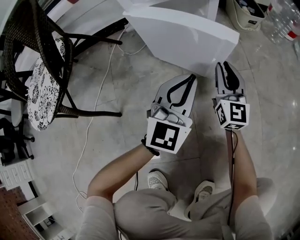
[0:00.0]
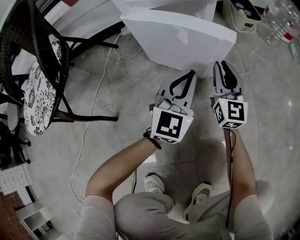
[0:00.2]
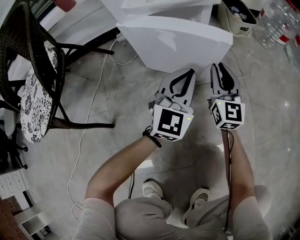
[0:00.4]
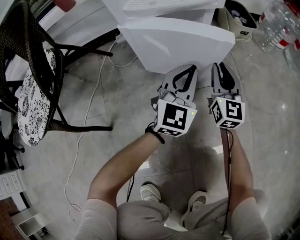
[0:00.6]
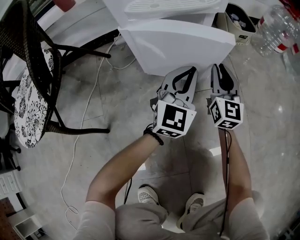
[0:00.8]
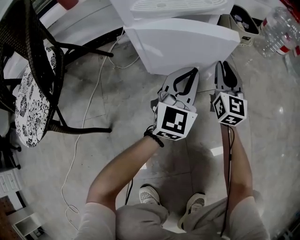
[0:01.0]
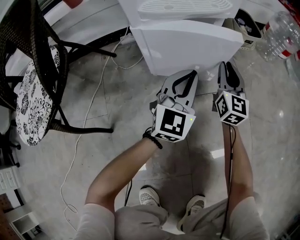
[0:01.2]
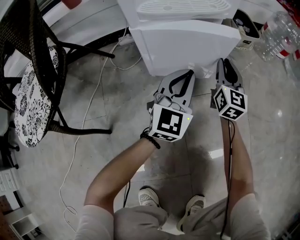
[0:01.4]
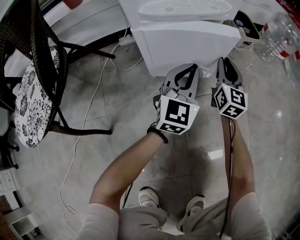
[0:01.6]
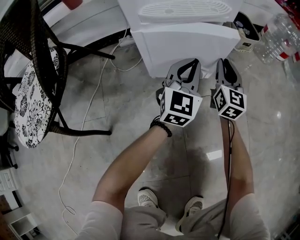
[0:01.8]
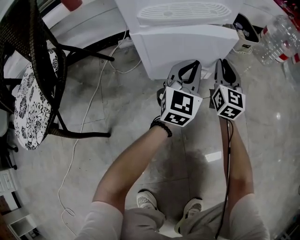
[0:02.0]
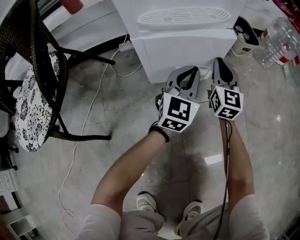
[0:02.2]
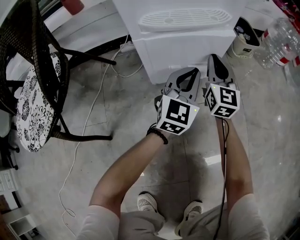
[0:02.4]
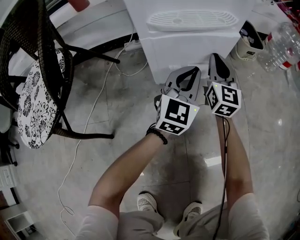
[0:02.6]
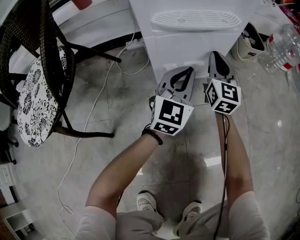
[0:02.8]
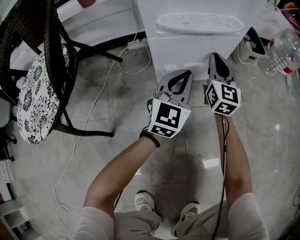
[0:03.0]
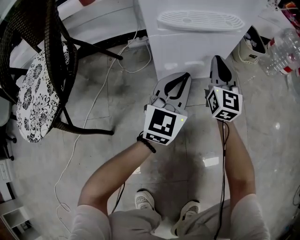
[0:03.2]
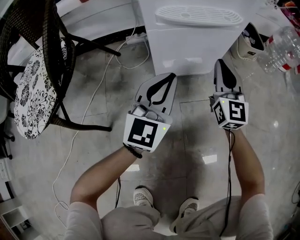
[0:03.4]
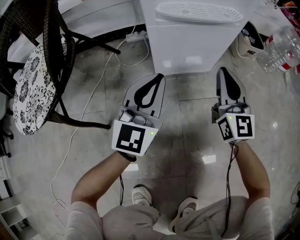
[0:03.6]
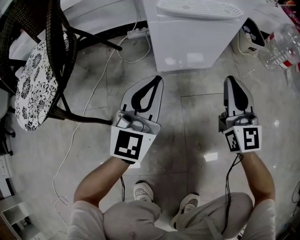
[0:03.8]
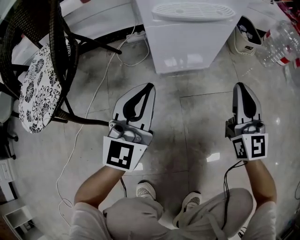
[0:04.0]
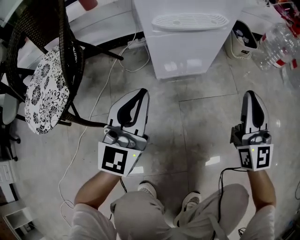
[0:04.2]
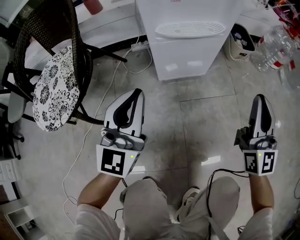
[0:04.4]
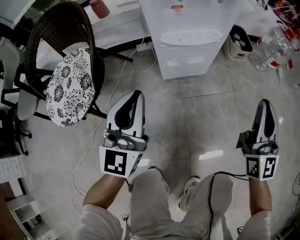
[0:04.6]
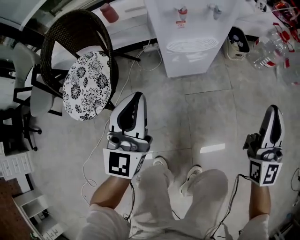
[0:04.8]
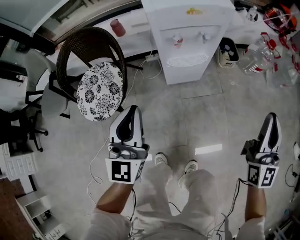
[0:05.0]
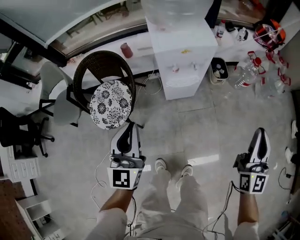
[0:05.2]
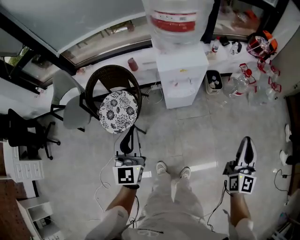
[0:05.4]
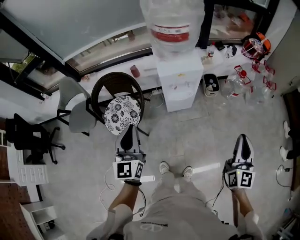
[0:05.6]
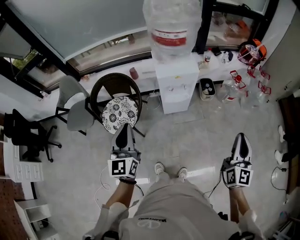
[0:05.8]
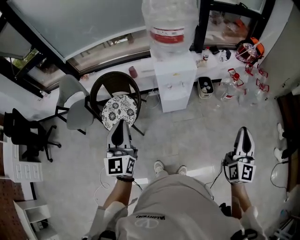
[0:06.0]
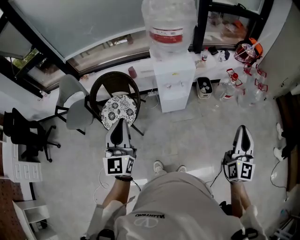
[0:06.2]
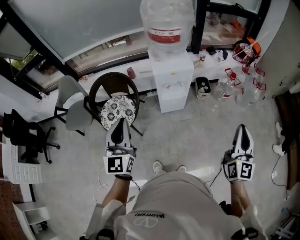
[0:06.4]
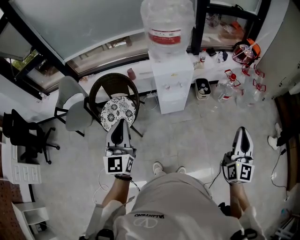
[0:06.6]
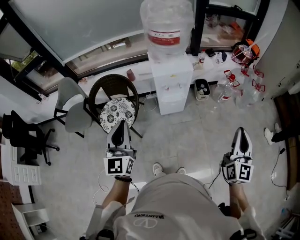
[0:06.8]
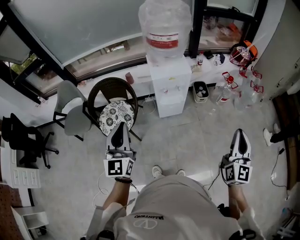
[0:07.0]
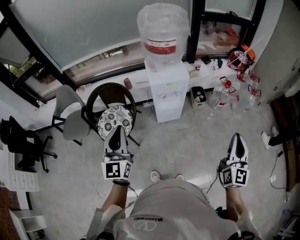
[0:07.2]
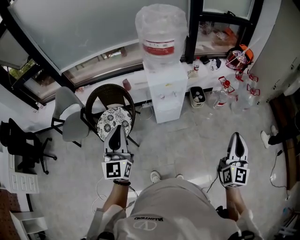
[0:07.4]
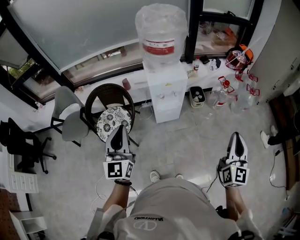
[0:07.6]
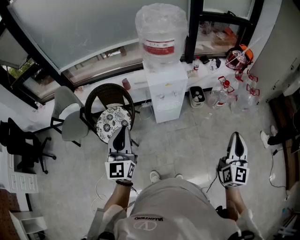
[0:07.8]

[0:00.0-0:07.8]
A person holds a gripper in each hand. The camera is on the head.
0:00.0 to 0:01.6: Both grippers move forward, roughly 10 cm.
0:01.6 to 0:03.2: The two grippers go roughly 5 cm to the left.
0:03.2 to 0:04.6: The right gripper moves upward, backward and to the right, approximately 35 cm. Meanwhile the left gripper goes about 30 cm upward, backward and to the left.
0:04.6 to 0:06.2: Both grippers move upward, some 60 cm.
0:06.2 to 0:07.8: The grippers stay close to where they were, moving slightly.

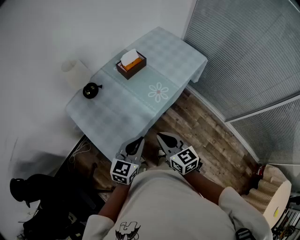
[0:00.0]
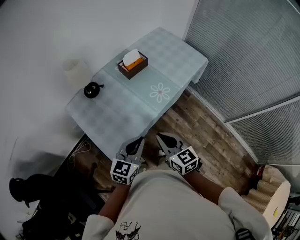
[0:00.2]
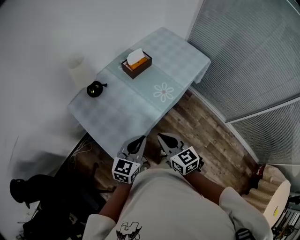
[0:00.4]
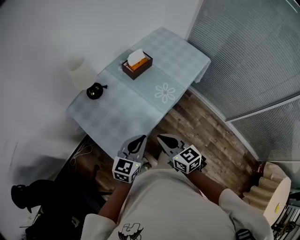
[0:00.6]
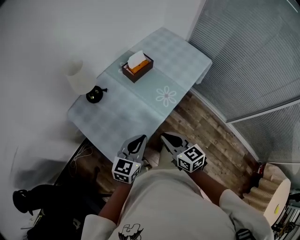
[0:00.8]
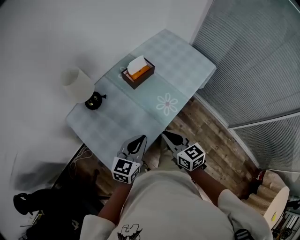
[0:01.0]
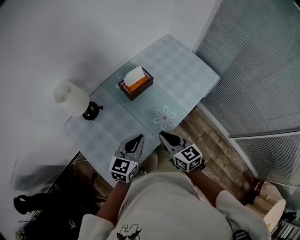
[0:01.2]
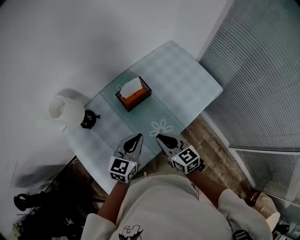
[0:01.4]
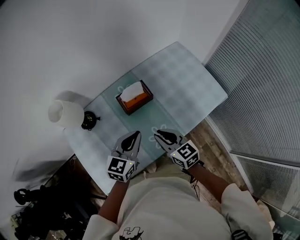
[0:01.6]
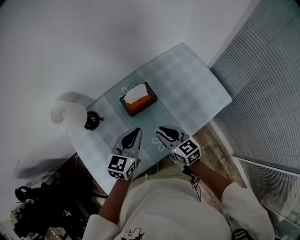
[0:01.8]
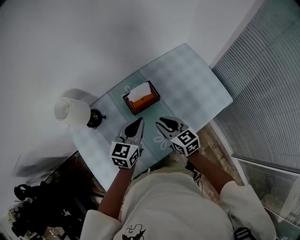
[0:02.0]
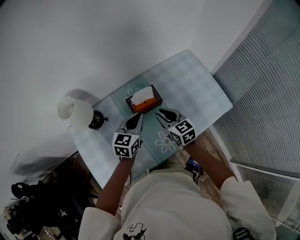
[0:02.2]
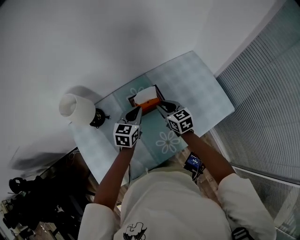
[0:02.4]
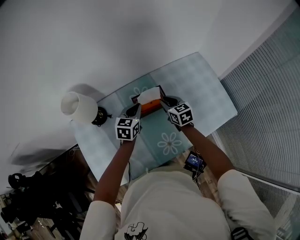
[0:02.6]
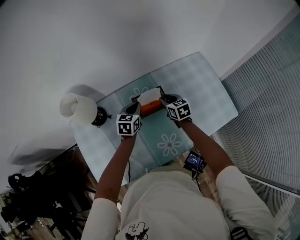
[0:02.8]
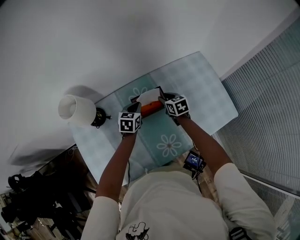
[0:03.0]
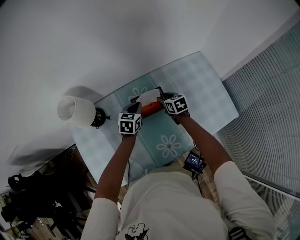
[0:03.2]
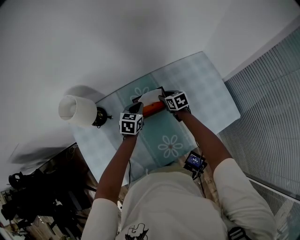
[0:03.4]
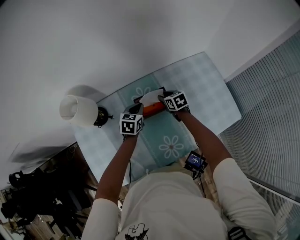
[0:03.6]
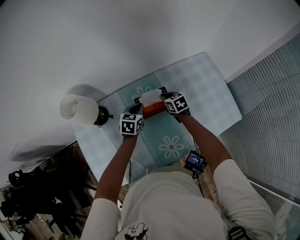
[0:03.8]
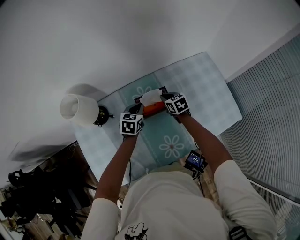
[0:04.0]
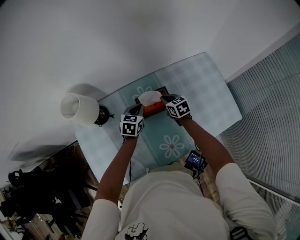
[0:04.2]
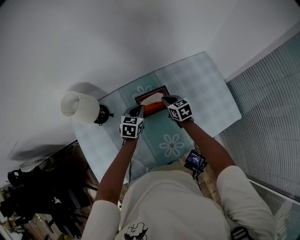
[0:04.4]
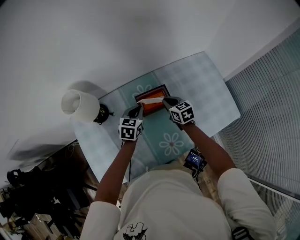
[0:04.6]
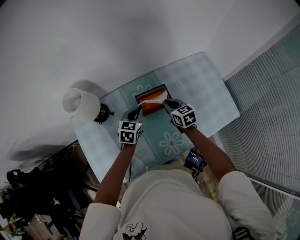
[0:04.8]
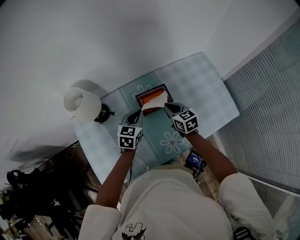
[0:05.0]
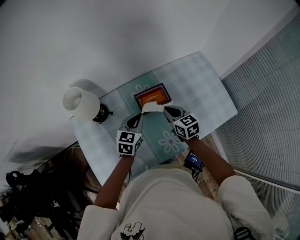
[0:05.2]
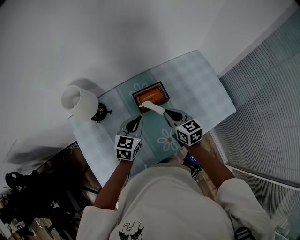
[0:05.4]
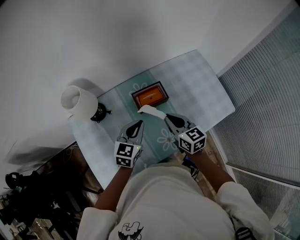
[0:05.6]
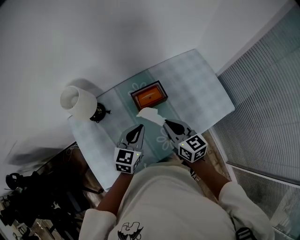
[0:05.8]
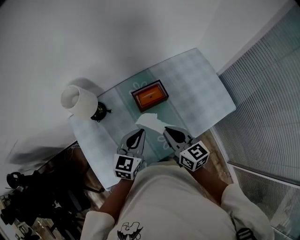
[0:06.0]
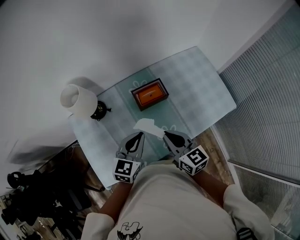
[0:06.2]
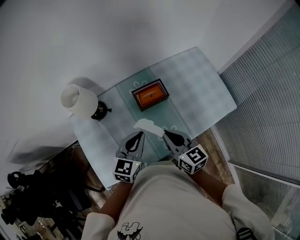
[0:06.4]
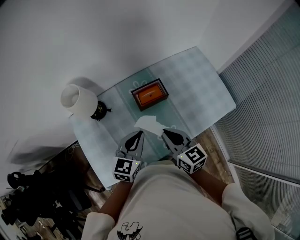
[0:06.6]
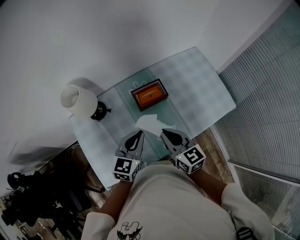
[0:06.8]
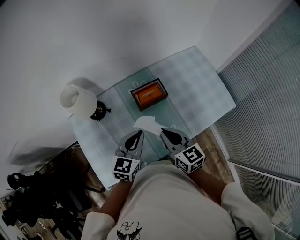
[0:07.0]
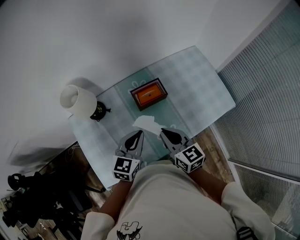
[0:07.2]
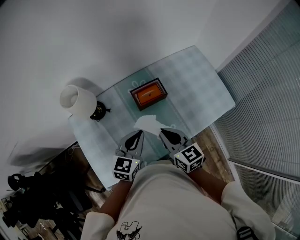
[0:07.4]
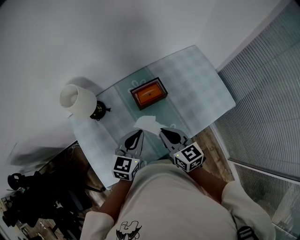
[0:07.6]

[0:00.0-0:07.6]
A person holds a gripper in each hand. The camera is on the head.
0:00.0 to 0:01.6: Both grippers move forward, approximately 35 cm. The right gripper changes its angle by roughly 20 degrees.
0:01.6 to 0:03.0: The grippers both shift forward and downward by approximately 25 cm. The left gripper rotates roughly 20 degrees.
0:03.0 to 0:04.6: The right gripper closes its fingers.
0:04.6 to 0:06.0: The two grippers go about 25 cm backward and upward. The right gripper turns by approximately 20 degrees.
0:06.0 to 0:07.6: There are only small adjustments of the grippers.

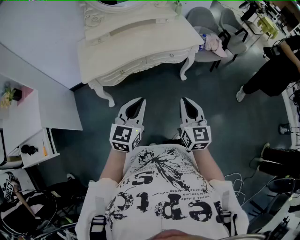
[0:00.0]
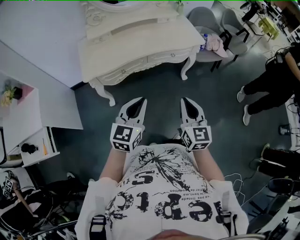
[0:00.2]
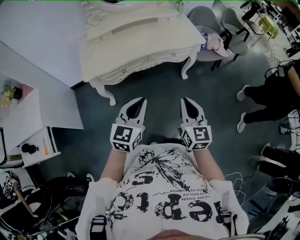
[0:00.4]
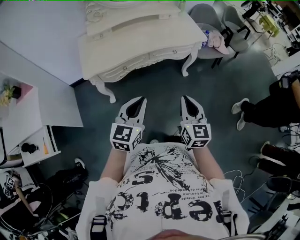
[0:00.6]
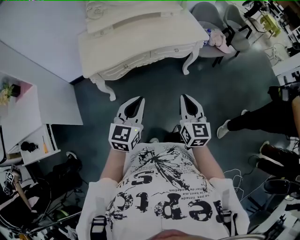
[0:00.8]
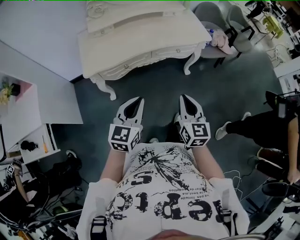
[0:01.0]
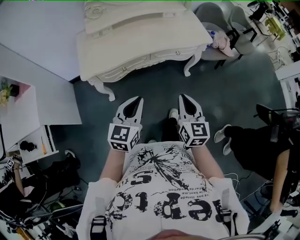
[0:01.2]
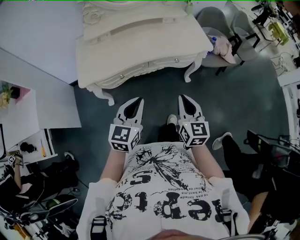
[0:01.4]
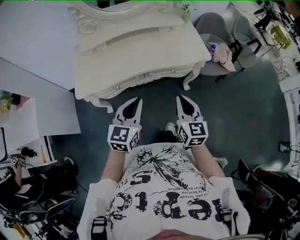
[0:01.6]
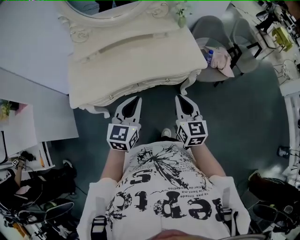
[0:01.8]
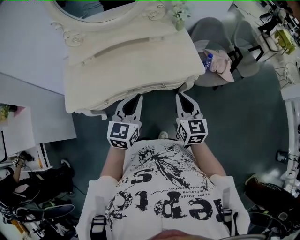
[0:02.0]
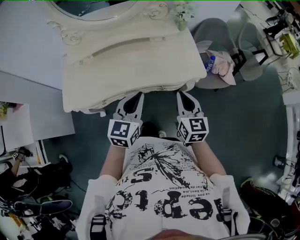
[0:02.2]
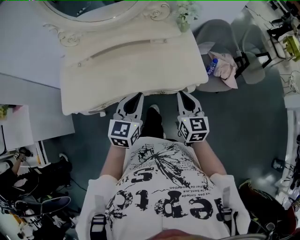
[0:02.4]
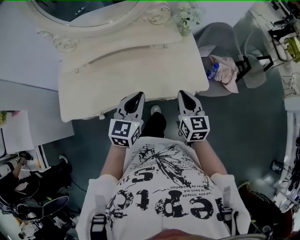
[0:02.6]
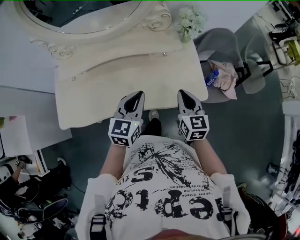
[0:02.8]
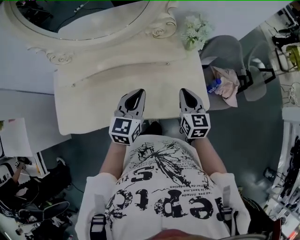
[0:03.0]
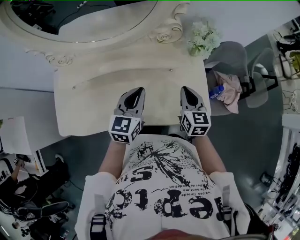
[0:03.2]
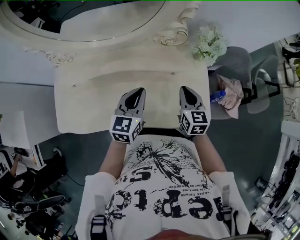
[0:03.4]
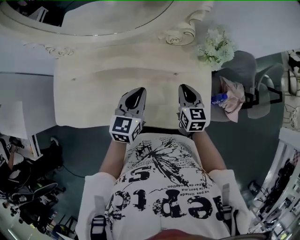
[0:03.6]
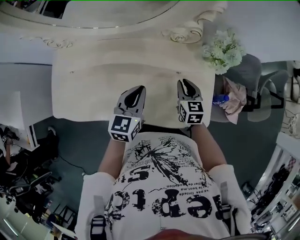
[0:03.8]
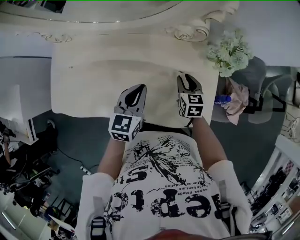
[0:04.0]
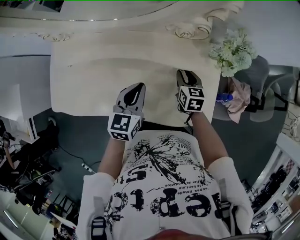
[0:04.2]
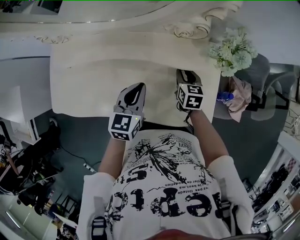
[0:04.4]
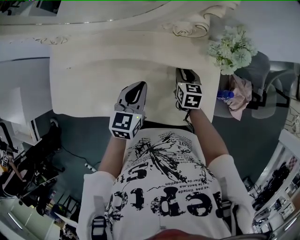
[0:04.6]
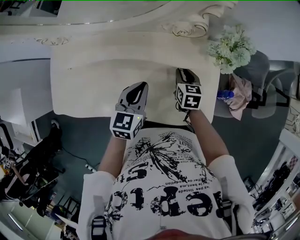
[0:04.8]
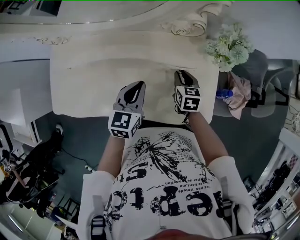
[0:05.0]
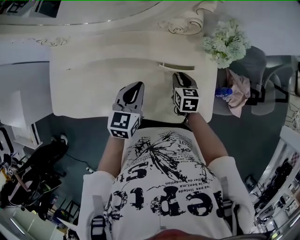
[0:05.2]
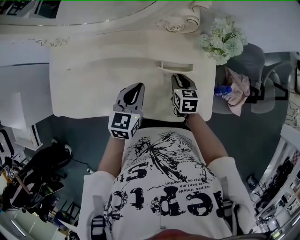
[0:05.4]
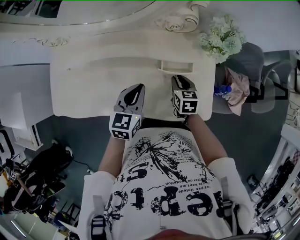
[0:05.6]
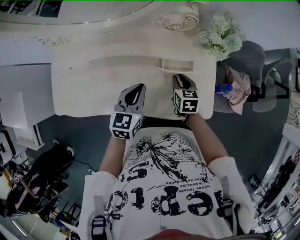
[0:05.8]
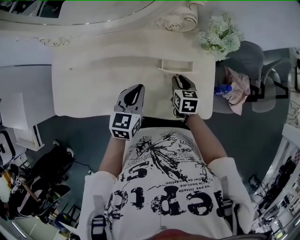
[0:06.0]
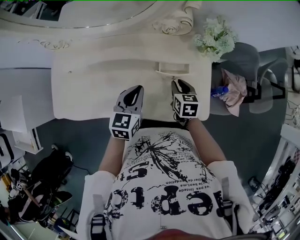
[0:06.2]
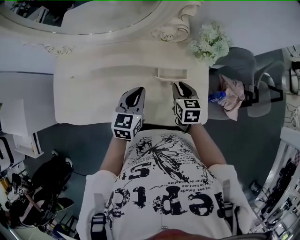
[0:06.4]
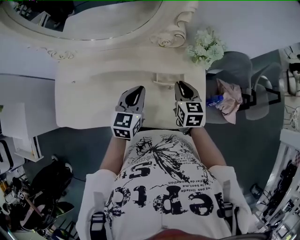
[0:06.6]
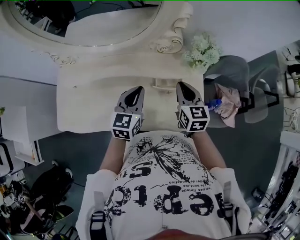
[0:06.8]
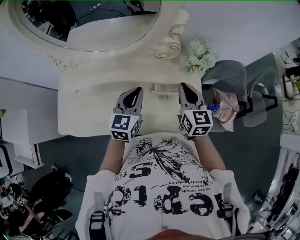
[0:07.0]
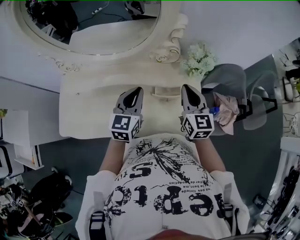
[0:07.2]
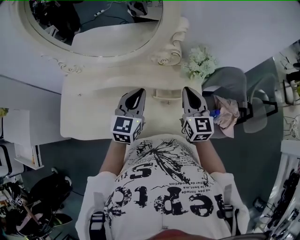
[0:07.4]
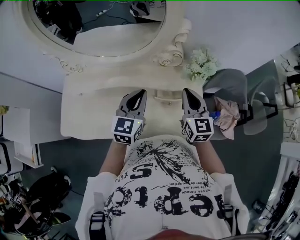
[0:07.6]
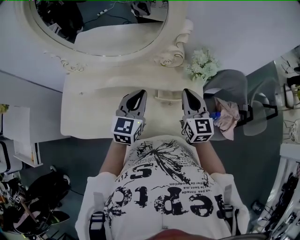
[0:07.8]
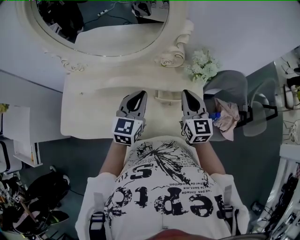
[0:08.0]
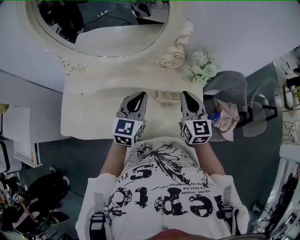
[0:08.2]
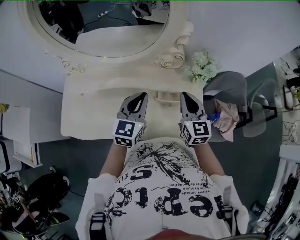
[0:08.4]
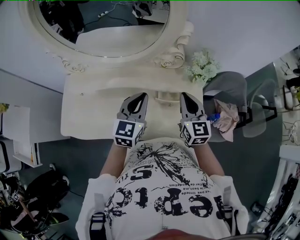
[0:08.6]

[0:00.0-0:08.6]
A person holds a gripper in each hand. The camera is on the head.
0:00.0 to 0:01.4: The two grippers go approximately 10 cm forward.
0:01.4 to 0:02.8: The two grippers travel together, forward, roughly 40 cm.
0:02.8 to 0:04.4: The right gripper travels forward and downward by approximately 30 cm, rotates roughly 20 degrees, and opens. The left gripper goes about 15 cm forward and downward.
0:04.4 to 0:05.8: The right gripper is displaced backward by approximately 5 cm.
0:05.8 to 0:07.2: The left gripper heads upward and forward, covering roughly 10 cm, while the right gripper is displaced upward by roughly 25 cm, tilts its fingers approximately 30 degrees upward, and closes.
0:07.2 to 0:08.6: The grippers make only small movements.
